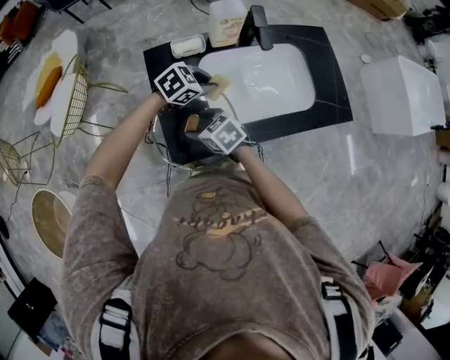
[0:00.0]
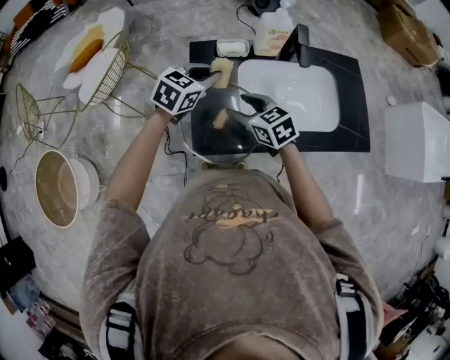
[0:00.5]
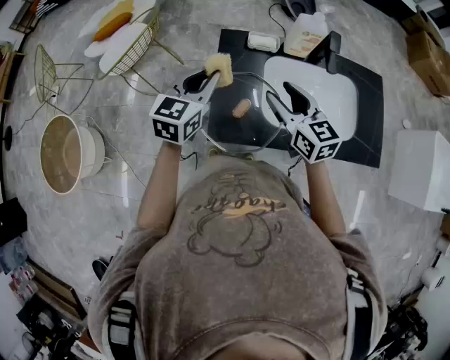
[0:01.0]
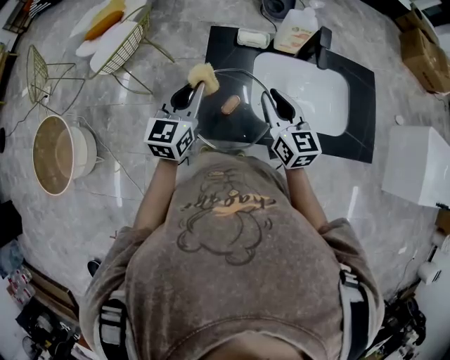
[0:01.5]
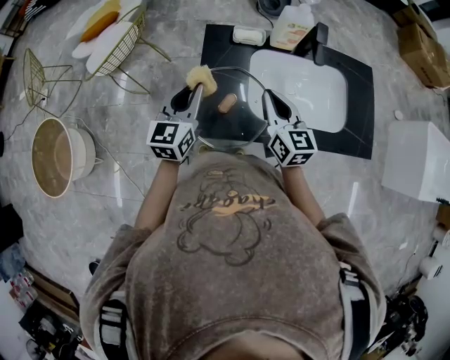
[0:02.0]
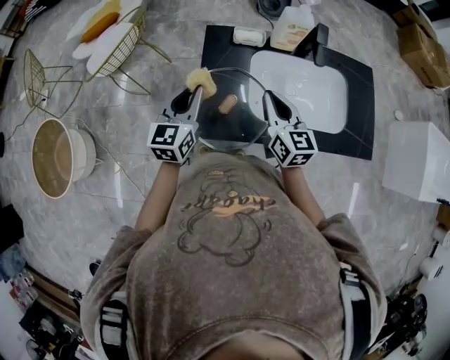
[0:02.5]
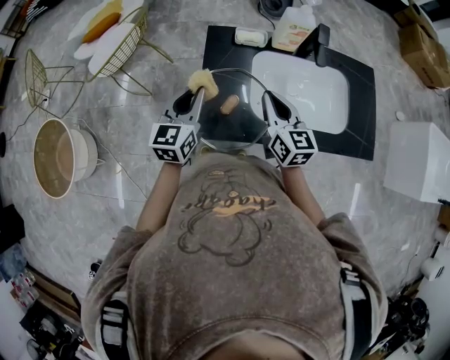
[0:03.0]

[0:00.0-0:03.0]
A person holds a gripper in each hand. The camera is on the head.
0.0 to 1.5 s: The left gripper shifts by some 25 cm, and tips its fingers upward by some 40 degrees; the right gripper heads upward, covering roughly 15 cm, tilts its fingers about 30 degrees upward, and closes.
1.5 to 3.0 s: The grippers make only small movements.

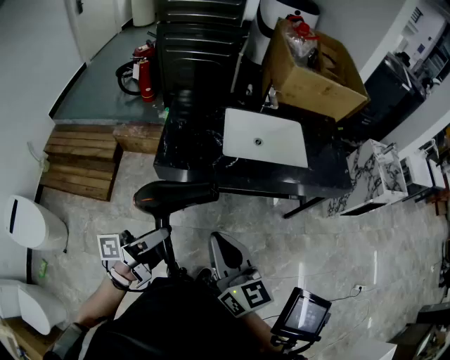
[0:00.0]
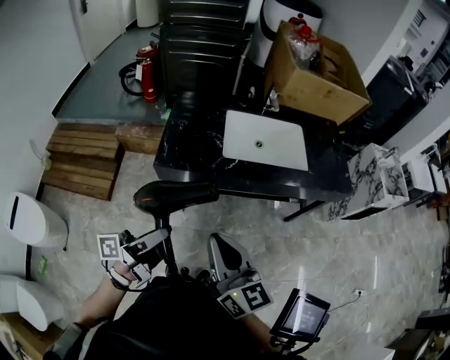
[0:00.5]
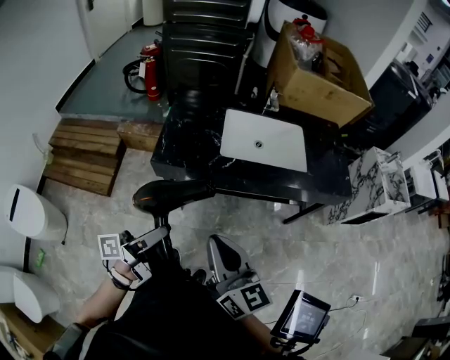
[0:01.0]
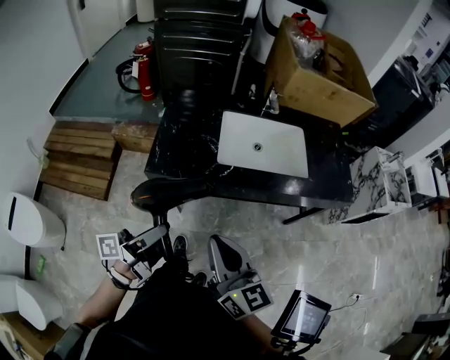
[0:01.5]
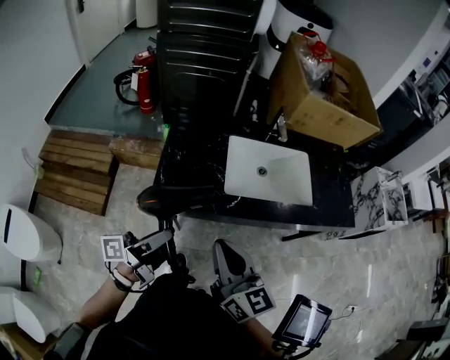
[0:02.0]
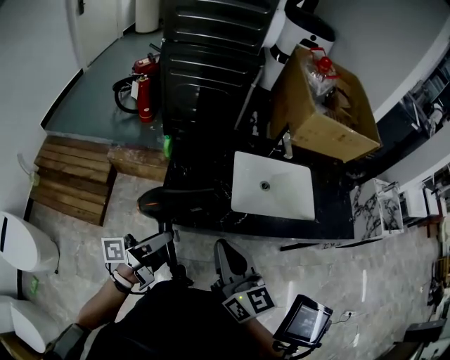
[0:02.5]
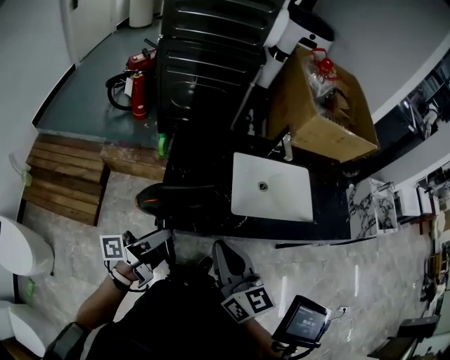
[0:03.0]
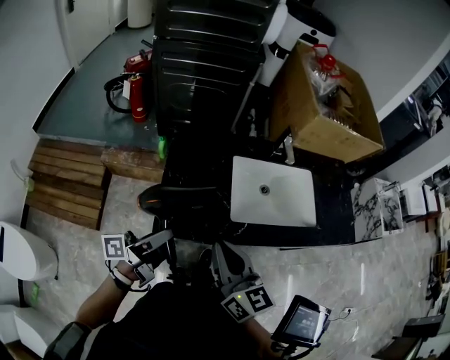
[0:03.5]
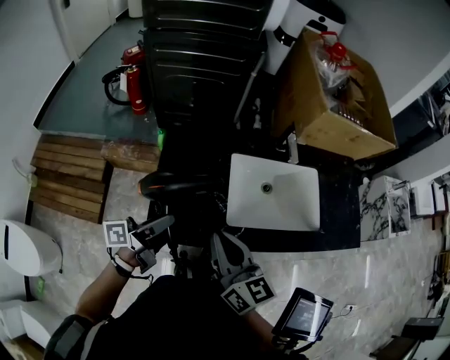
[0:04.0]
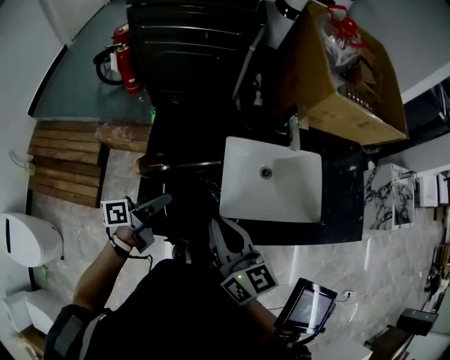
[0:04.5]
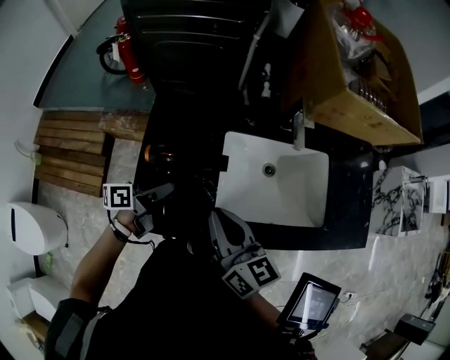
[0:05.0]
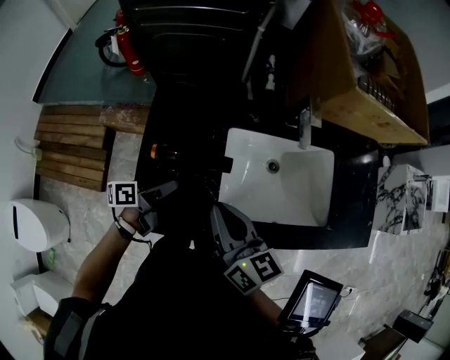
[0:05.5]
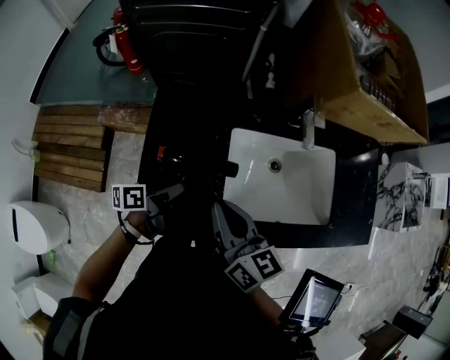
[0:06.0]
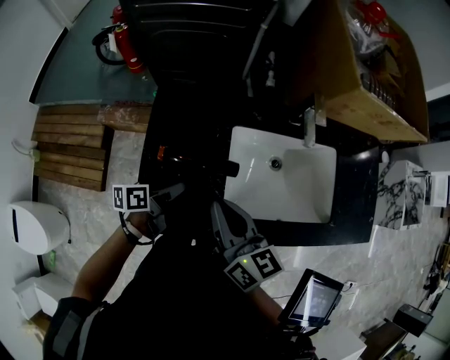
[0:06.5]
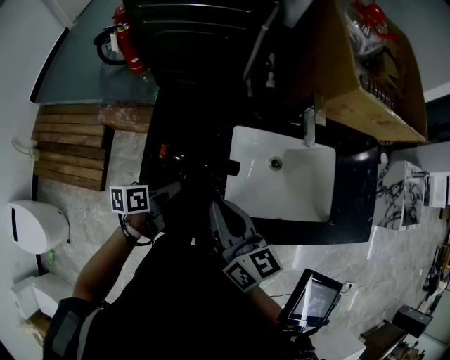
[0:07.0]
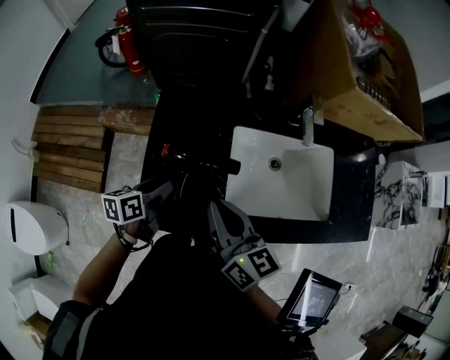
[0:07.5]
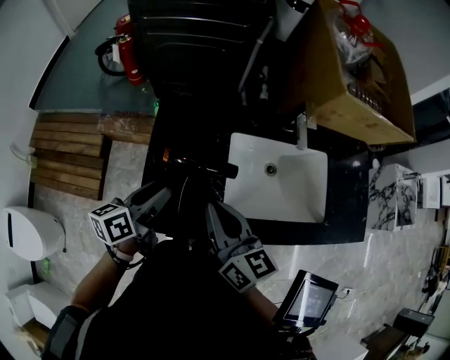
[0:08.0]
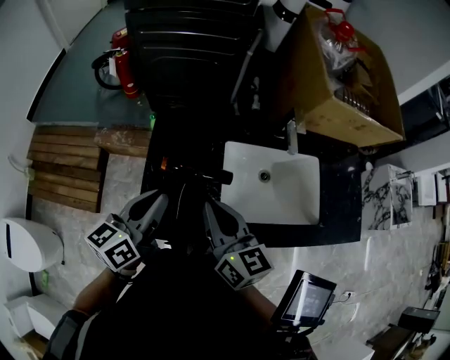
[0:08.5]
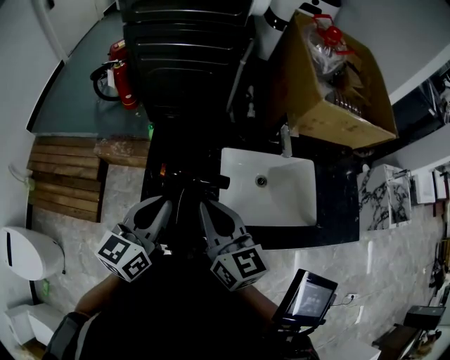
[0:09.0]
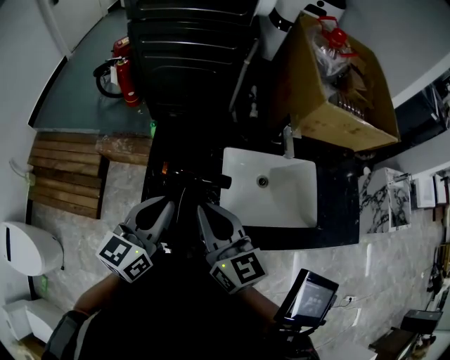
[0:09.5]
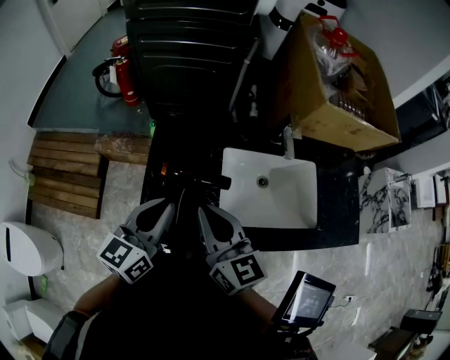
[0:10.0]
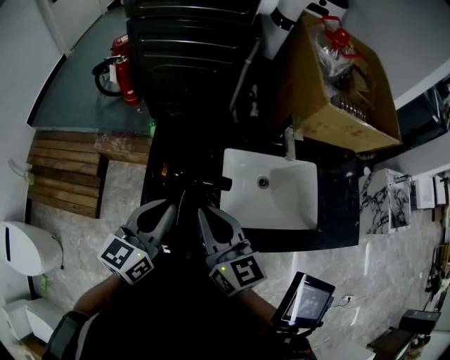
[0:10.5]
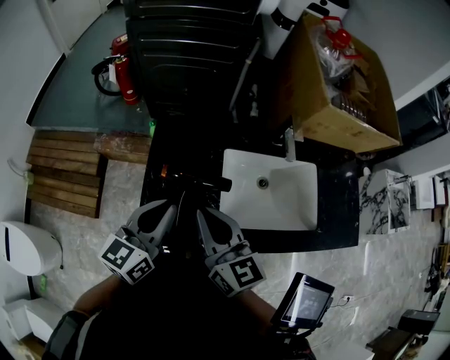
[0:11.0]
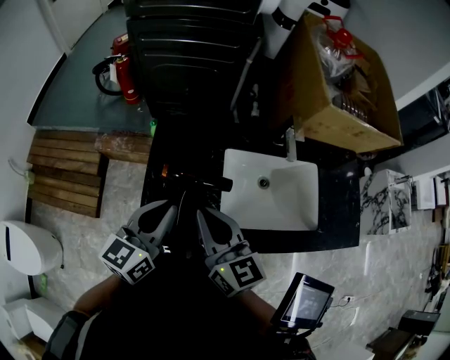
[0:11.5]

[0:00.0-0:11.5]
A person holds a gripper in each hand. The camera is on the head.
0.0 to 2.0 s: The grippers both shift forward by about 15 cm.
2.0 to 4.0 s: Both grippers travel together forward, roughly 15 cm.
4.0 to 6.0 s: The left gripper moves downward and forward, roughly 15 cm, and changes its angle by approximately 20 degrees; the right gripper shifts roughly 10 cm forward and downward.
6.0 to 7.5 s: The left gripper goes some 5 cm to the left, and turns by approximately 20 degrees.
7.5 to 9.5 s: The left gripper heads upward, covering about 20 cm, rotates approximately 40 degrees, and closes up. The right gripper moves upward, some 5 cm.
9.5 to 11.5 s: The grippers stay close to where they were, moving slightly.

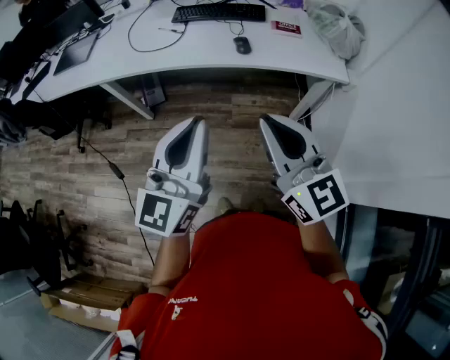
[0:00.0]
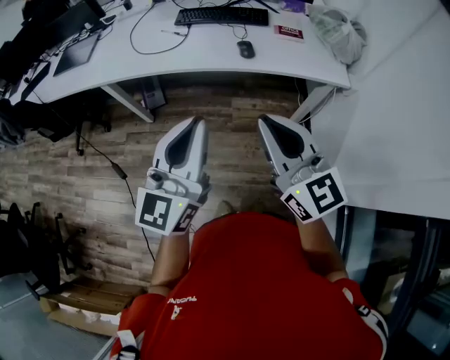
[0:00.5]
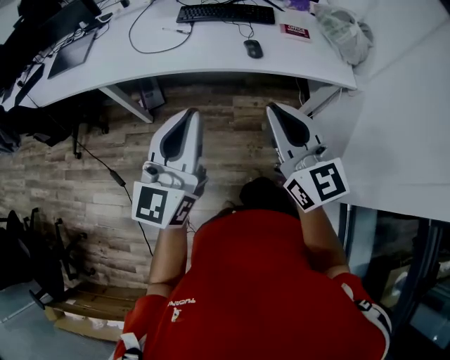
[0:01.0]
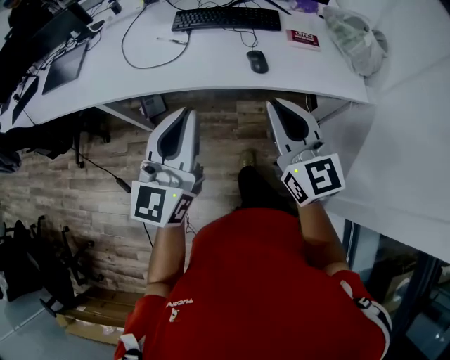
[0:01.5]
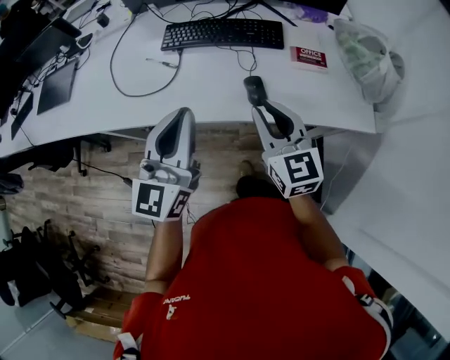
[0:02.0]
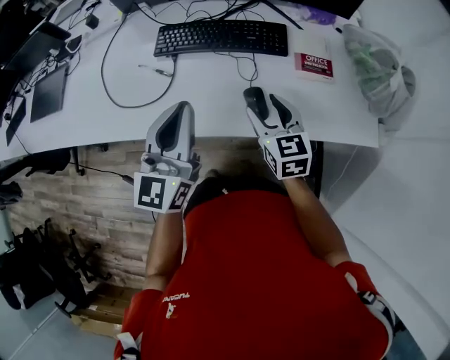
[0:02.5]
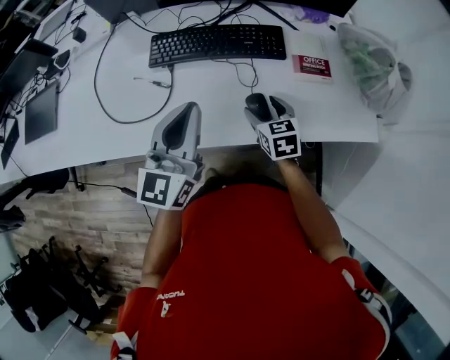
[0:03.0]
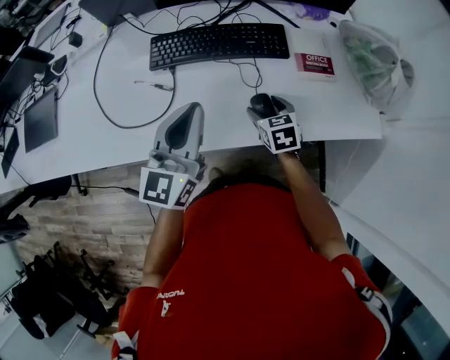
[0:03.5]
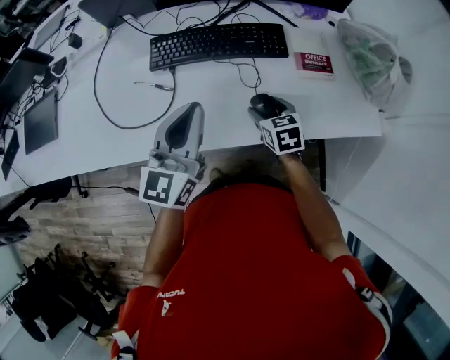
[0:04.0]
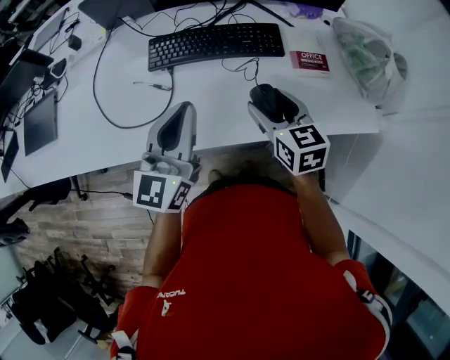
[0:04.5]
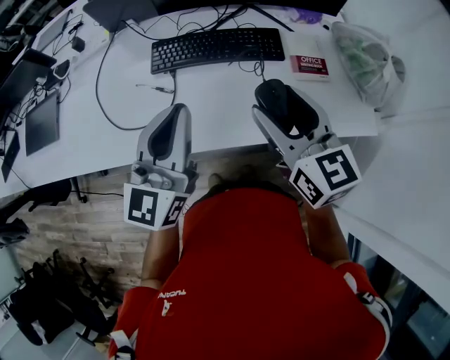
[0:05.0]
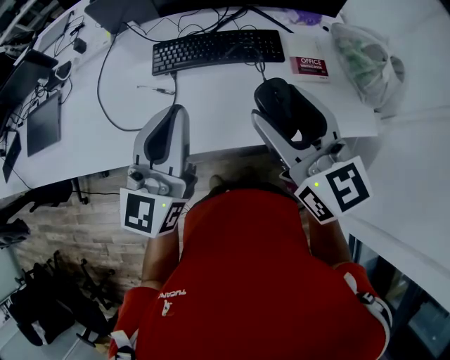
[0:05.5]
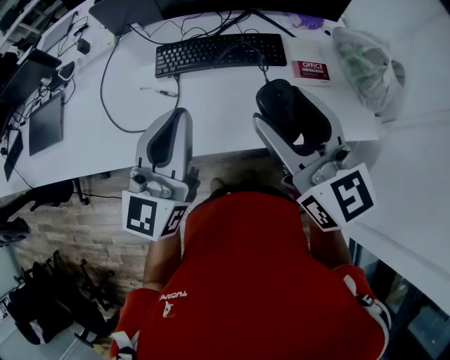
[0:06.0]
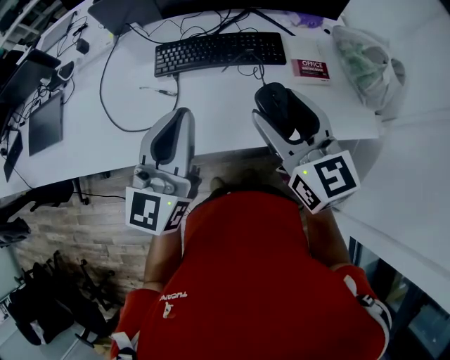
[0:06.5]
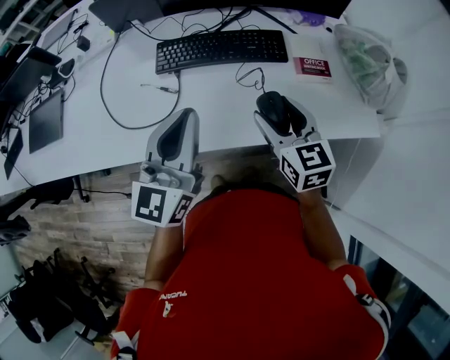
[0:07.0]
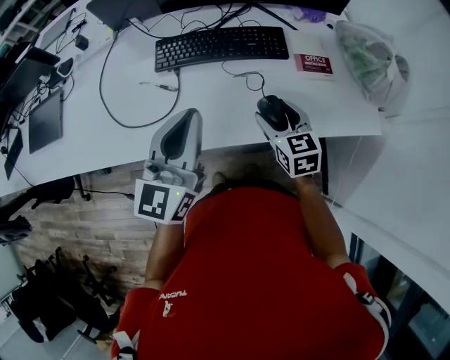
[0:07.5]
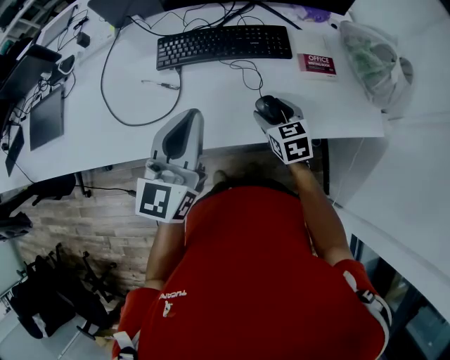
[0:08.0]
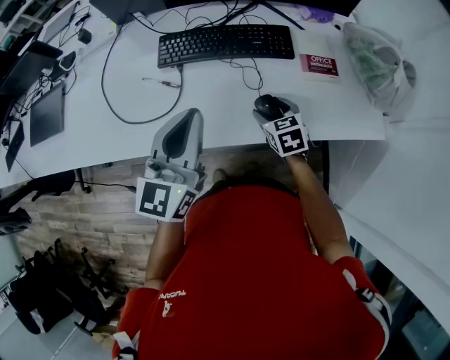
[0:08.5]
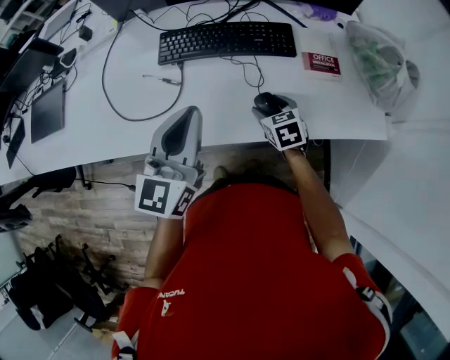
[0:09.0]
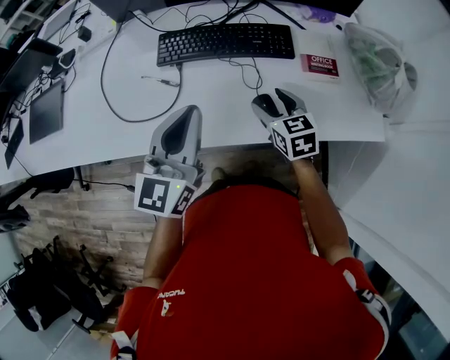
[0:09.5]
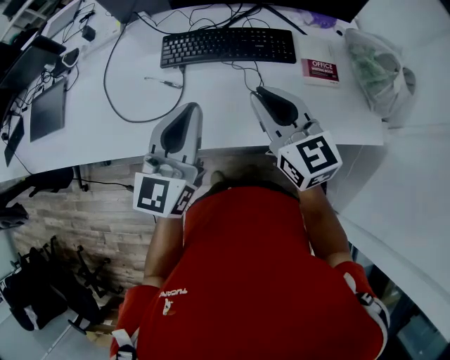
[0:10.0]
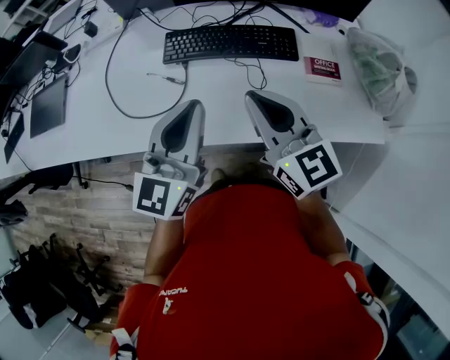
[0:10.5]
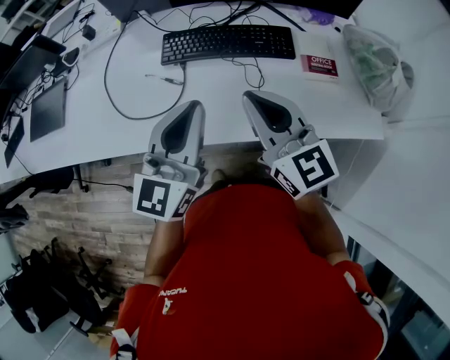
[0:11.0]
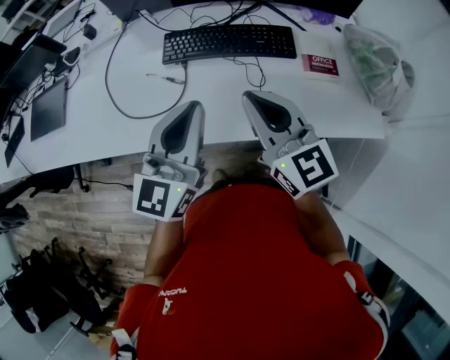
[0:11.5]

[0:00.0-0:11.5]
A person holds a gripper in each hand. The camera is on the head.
0.0 to 2.0 s: Both grippers move forward, some 35 cm.
2.0 to 4.0 s: The left gripper goes approximately 15 cm forward. Meanwhile the right gripper goes some 25 cm downward and forward, angles its fingers downward, by roughly 40 degrees, and opens.
4.0 to 6.0 s: The right gripper shifts about 35 cm upward, and tips its fingers upward by approximately 40 degrees. Meanwhile the left gripper is displaced upward by approximately 10 cm.
6.0 to 7.5 s: The right gripper moves downward, some 25 cm, and changes its angle by about 30 degrees, while the left gripper goes about 5 cm downward.
7.5 to 9.5 s: The right gripper travels downward and back again, approximately 10 cm each way.
9.5 to 11.5 s: The right gripper is displaced upward and to the left by roughly 20 cm, tilts its fingers approximately 30 degrees upward, and closes up.

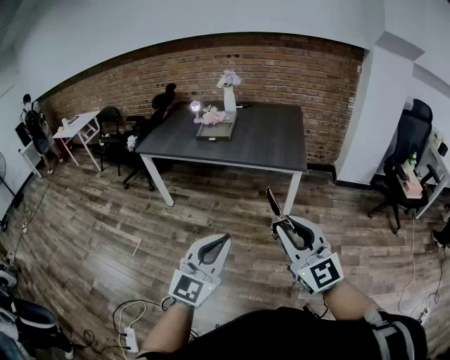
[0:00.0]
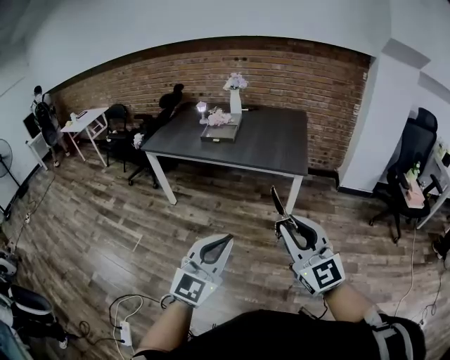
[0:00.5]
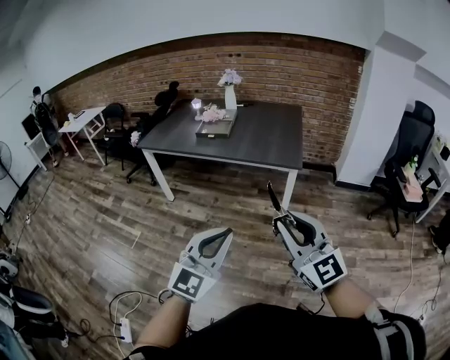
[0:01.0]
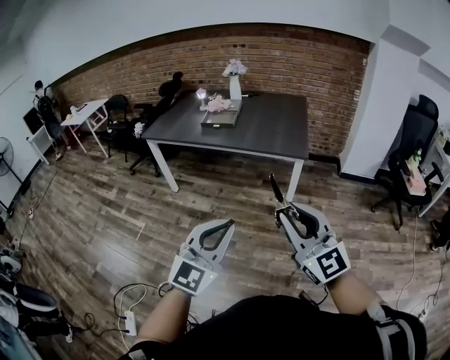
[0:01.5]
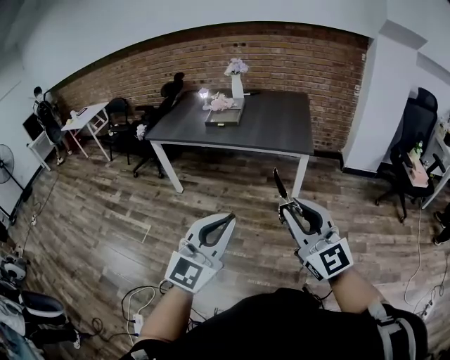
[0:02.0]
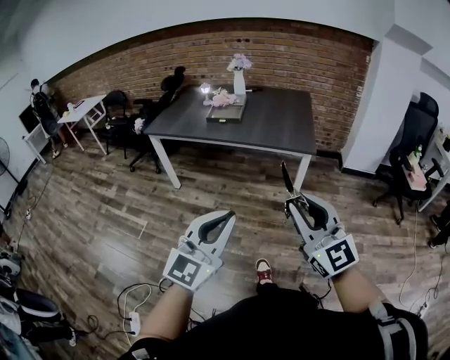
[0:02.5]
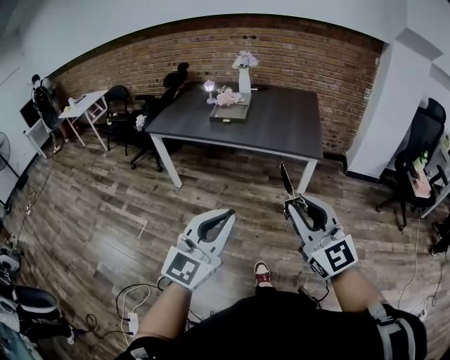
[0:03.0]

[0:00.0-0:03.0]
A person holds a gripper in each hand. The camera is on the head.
0.0 to 1.5 s: The left gripper ends up about 5 cm from where it was, while the right gripper moves roughly 5 cm.
1.5 to 3.0 s: Both grippers travel together to the left and forward, approximately 10 cm.
